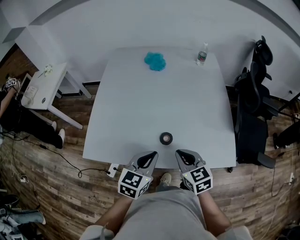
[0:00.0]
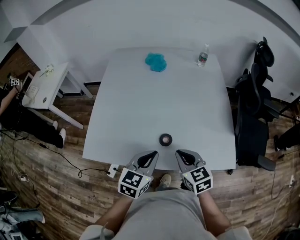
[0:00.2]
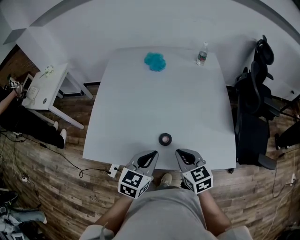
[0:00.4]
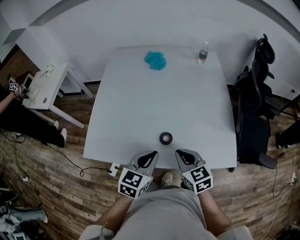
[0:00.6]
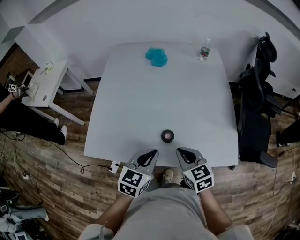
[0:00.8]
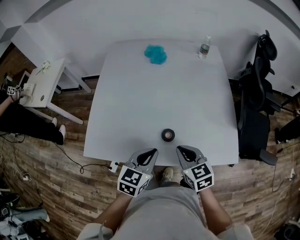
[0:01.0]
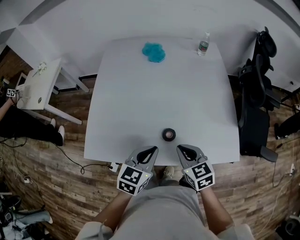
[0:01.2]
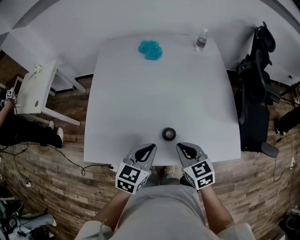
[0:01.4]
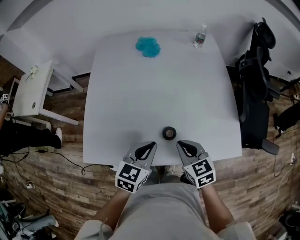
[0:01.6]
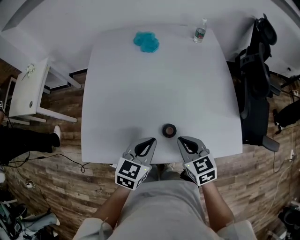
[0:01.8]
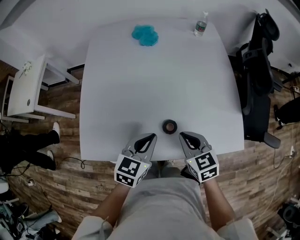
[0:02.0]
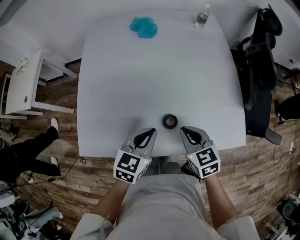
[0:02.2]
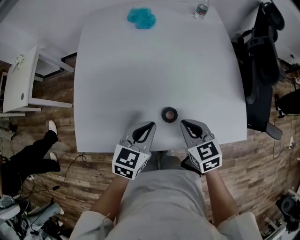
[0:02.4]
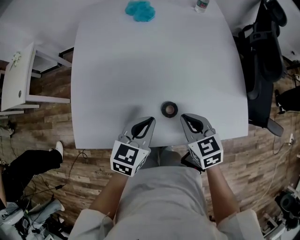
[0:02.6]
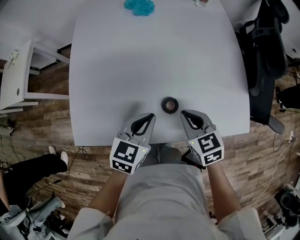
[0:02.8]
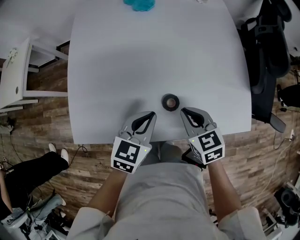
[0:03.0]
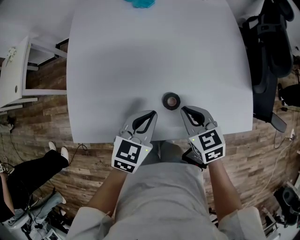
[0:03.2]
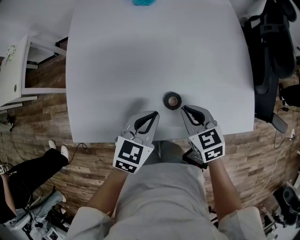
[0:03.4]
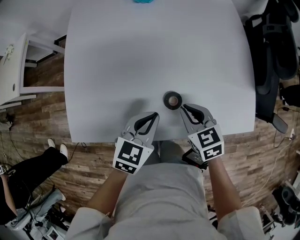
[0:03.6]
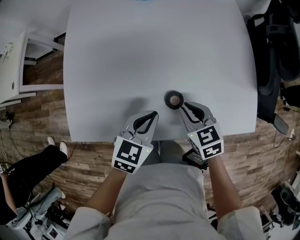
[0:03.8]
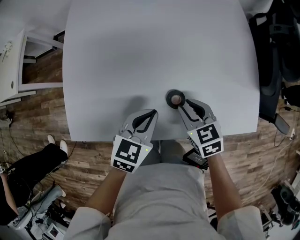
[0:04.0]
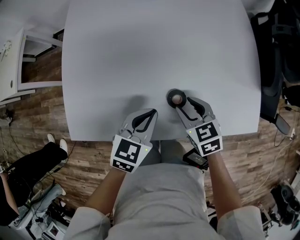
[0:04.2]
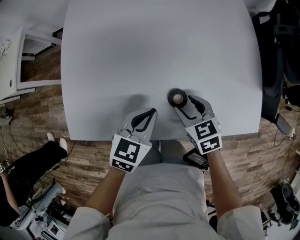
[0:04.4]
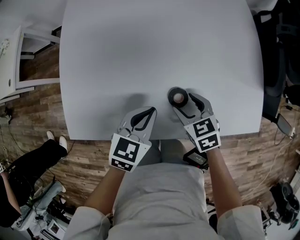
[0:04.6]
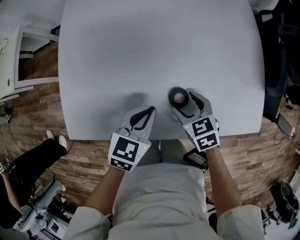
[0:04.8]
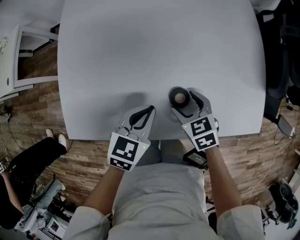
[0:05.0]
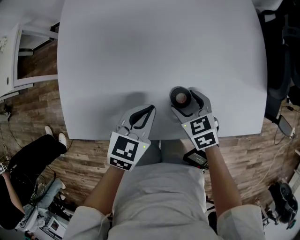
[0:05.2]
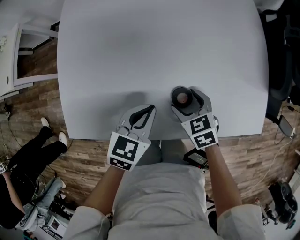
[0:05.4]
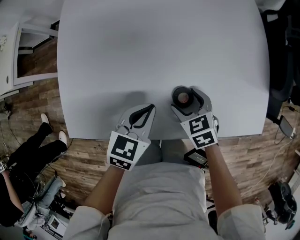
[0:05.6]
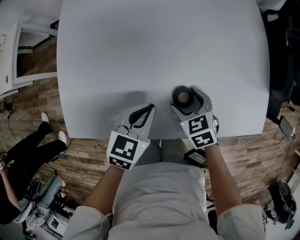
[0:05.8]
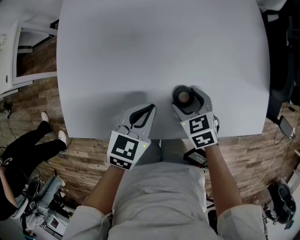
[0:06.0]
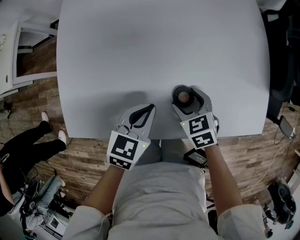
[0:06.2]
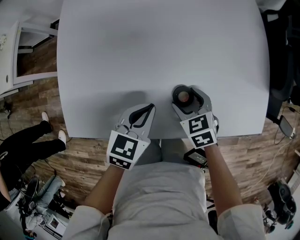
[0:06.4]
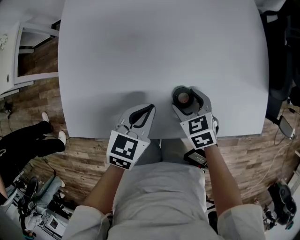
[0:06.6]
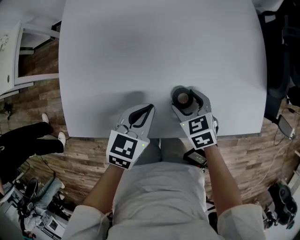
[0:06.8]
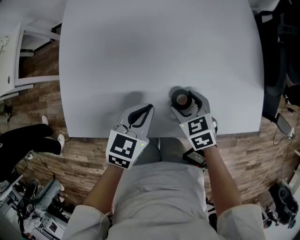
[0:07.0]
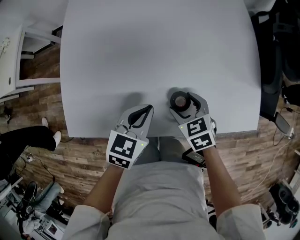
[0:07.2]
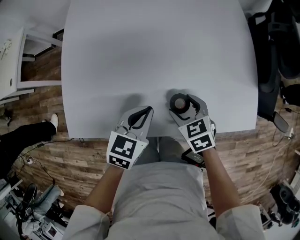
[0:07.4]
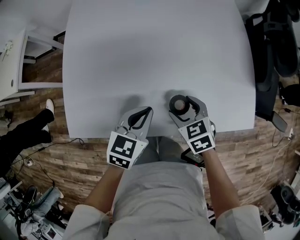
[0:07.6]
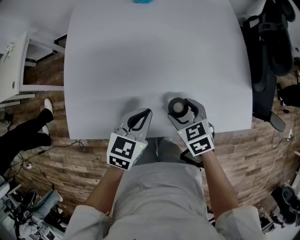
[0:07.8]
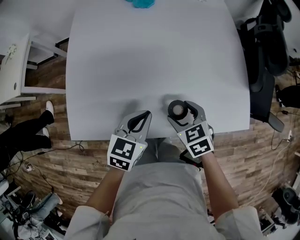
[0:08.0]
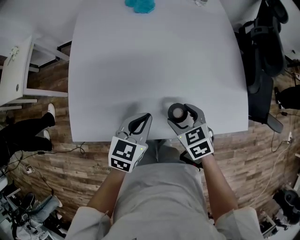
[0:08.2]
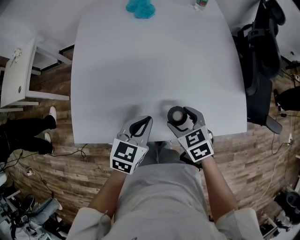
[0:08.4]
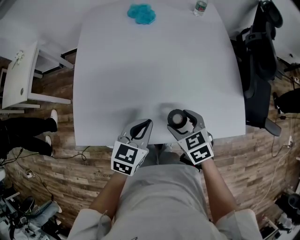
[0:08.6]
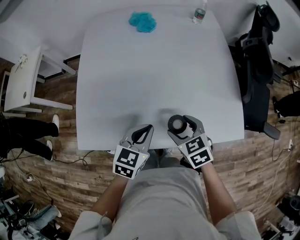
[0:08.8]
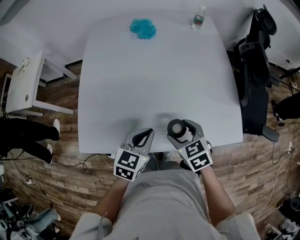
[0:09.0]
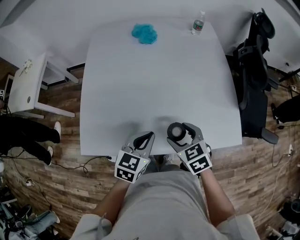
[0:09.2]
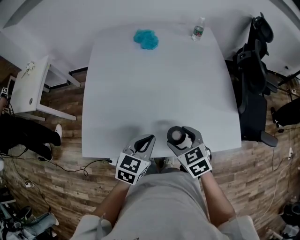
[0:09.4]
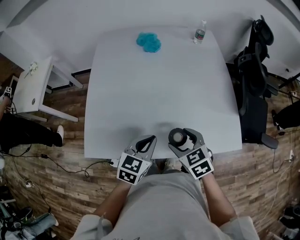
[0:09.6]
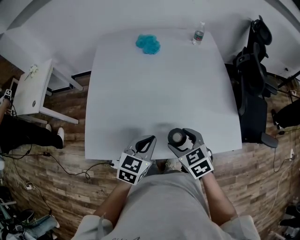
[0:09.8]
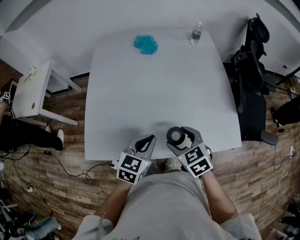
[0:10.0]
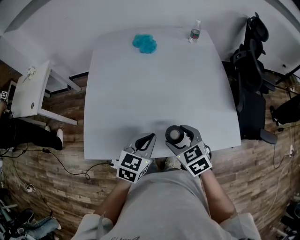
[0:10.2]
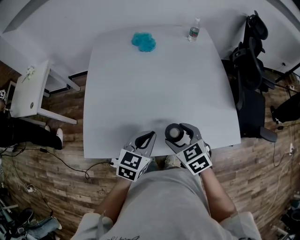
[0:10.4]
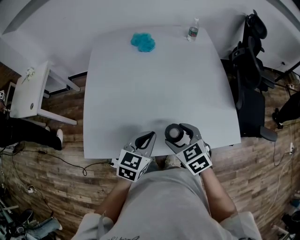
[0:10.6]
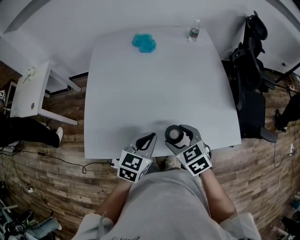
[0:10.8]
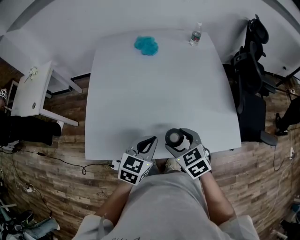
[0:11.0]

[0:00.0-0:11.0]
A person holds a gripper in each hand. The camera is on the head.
0.0 to 1.6 s: The left gripper travels forward by roughly 5 cm.
1.6 to 3.2 s: The grippers both shift downward by approximately 5 cm.
3.2 to 4.8 s: The left gripper moves downward, about 5 cm, while the right gripper travels downward by roughly 10 cm, and opens.
4.8 to 6.2 s: The grippers move only a little.
6.2 to 7.8 s: Both grippers travel together upward, about 5 cm.
7.8 to 9.4 s: The right gripper is displaced upward by some 10 cm, while the left gripper moves upward, some 5 cm.
9.4 to 11.0 s: There are only small adjustments of the grippers.

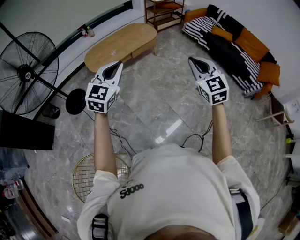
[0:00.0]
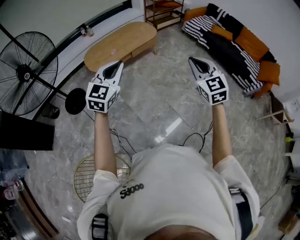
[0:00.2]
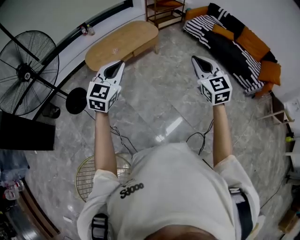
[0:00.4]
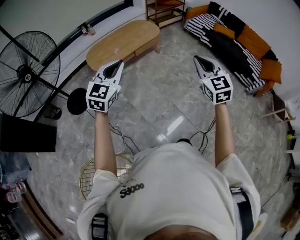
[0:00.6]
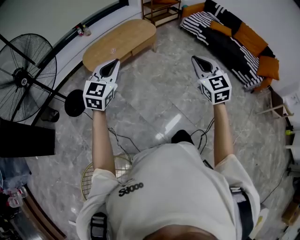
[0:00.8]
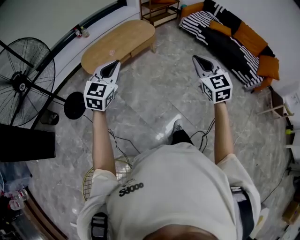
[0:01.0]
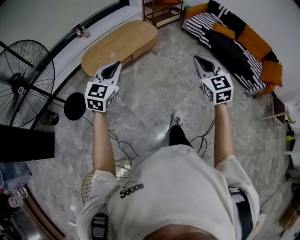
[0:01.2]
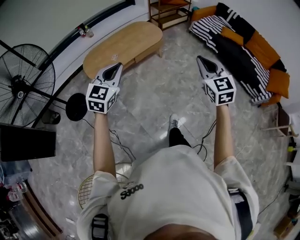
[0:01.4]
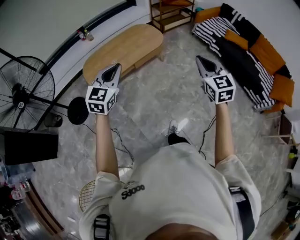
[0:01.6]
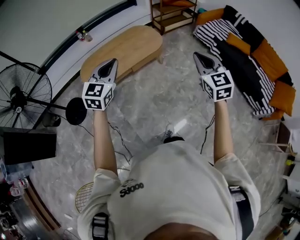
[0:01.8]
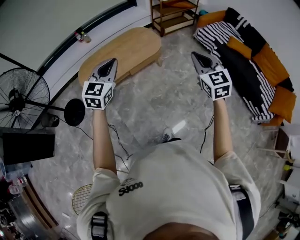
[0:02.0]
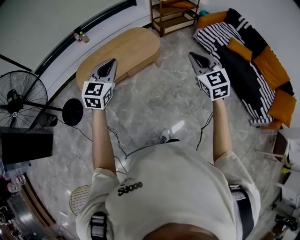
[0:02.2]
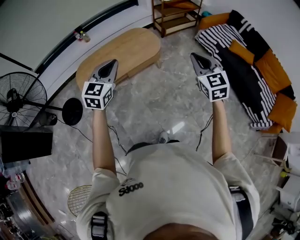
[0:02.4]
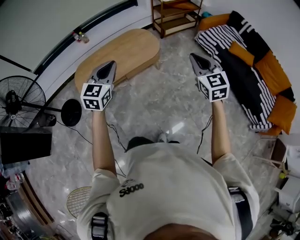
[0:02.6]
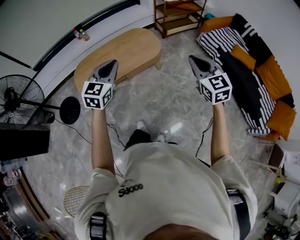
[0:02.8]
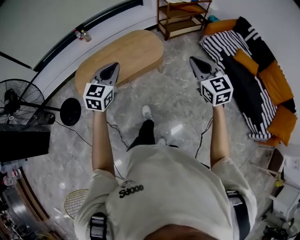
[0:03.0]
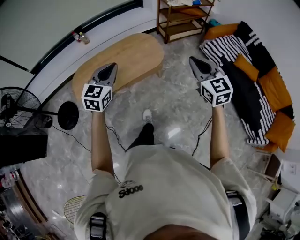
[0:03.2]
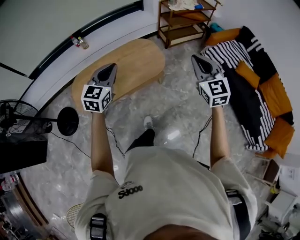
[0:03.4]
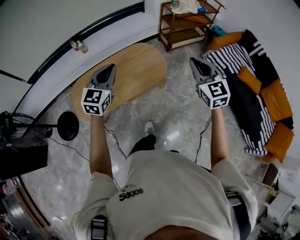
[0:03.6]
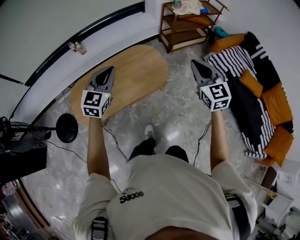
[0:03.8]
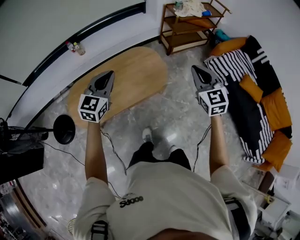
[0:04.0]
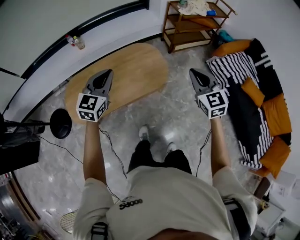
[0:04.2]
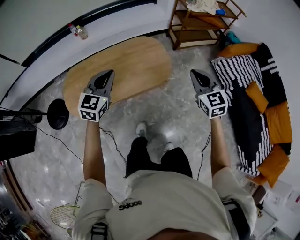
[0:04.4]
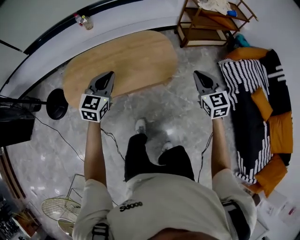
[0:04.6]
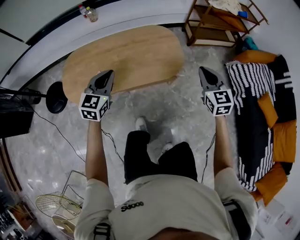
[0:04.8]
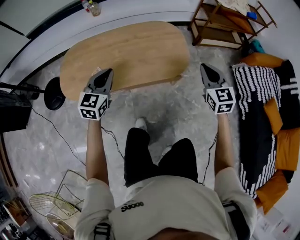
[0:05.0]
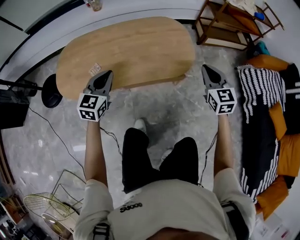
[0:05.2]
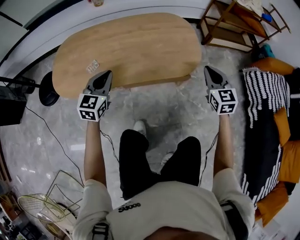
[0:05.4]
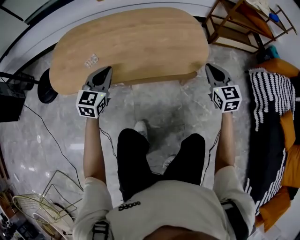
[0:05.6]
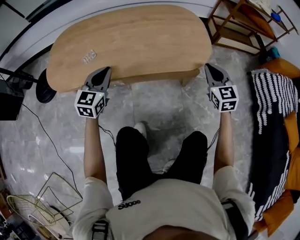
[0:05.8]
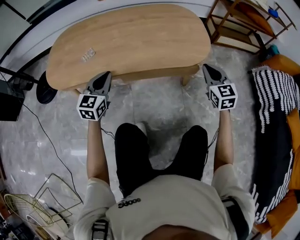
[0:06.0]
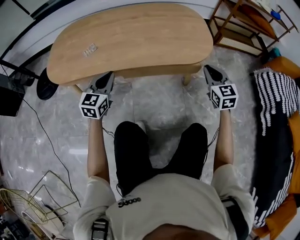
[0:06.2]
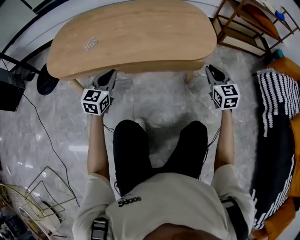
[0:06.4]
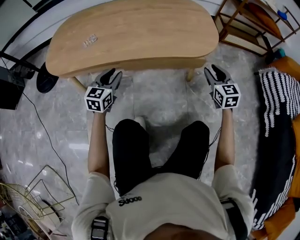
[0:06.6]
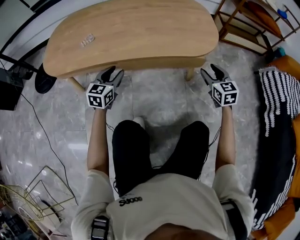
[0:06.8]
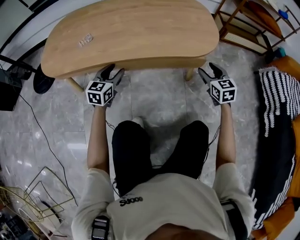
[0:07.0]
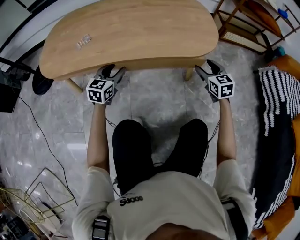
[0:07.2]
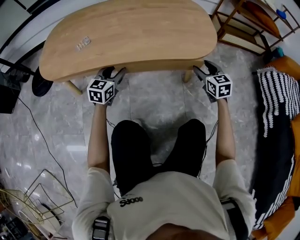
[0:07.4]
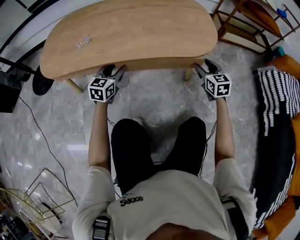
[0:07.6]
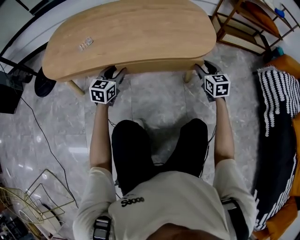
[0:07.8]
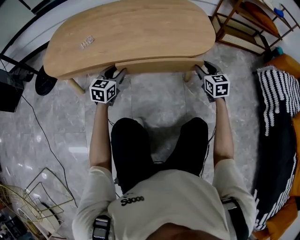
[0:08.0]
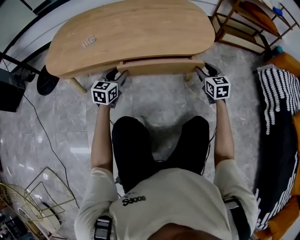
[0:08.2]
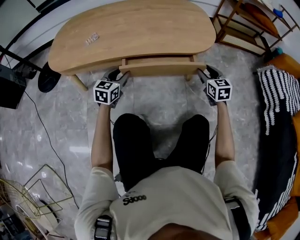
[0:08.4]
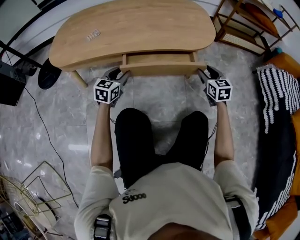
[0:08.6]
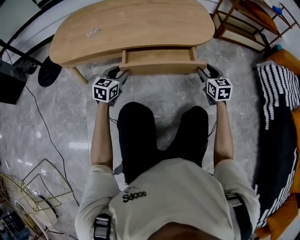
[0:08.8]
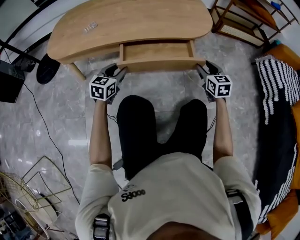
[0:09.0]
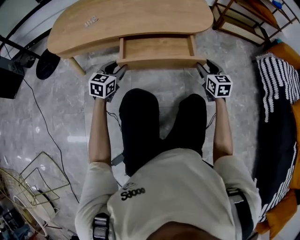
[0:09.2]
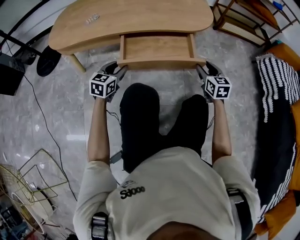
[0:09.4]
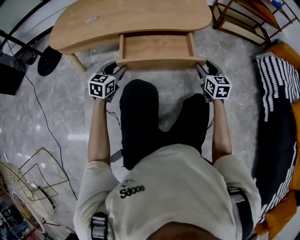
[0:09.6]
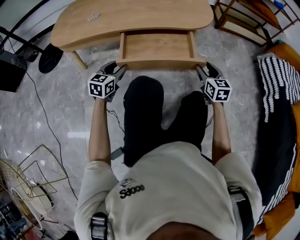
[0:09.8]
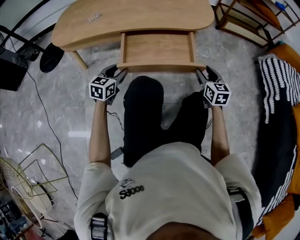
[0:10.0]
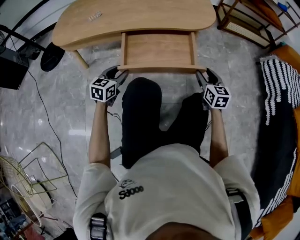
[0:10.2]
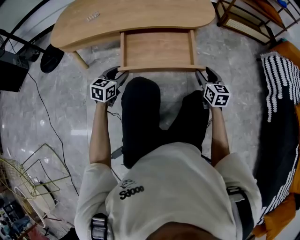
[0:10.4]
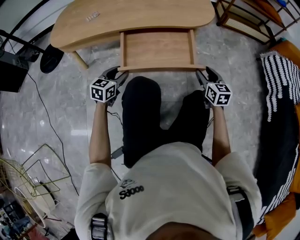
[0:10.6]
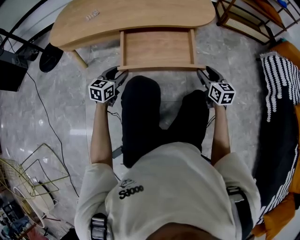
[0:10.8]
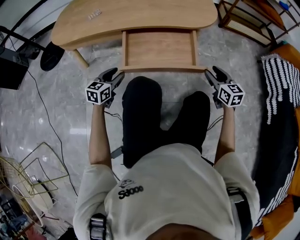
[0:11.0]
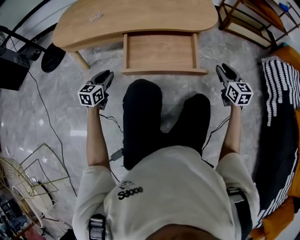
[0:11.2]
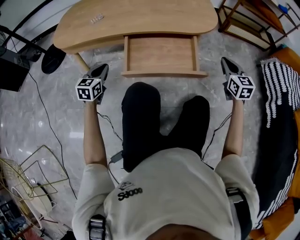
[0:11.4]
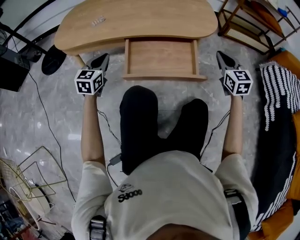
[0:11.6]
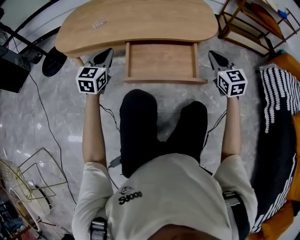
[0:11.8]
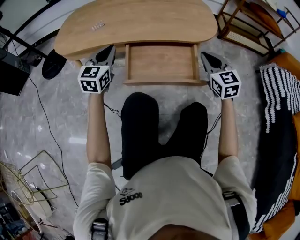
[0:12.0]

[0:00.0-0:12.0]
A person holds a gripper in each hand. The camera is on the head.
0.0 to 1.6 s: Both grippers move forward, roughly 30 cm.
1.6 to 3.0 s: Both grippers move forward, roughly 25 cm.
3.0 to 4.4 s: The two grippers go some 30 cm forward and downward.
4.4 to 6.0 s: The two grippers go about 40 cm downward. The left gripper swivels approximately 20 degrees.
6.0 to 7.6 s: Both grippers move downward, approximately 15 cm. The right gripper opens up. Meanwhile the left gripper opens its fingers.
7.6 to 9.0 s: Both grippers move backward, about 10 cm.
9.0 to 10.4 s: Both grippers move backward, approximately 5 cm.
10.4 to 12.0 s: The grippers both shift upward and forward by about 20 cm. The right gripper rotates some 20 degrees, and closes, while the left gripper swivels roughly 30 degrees, and closes up.

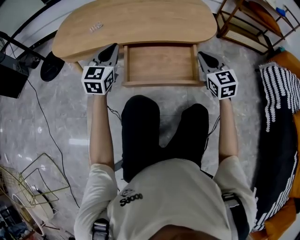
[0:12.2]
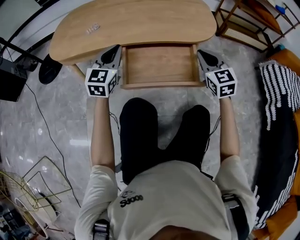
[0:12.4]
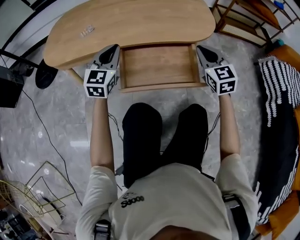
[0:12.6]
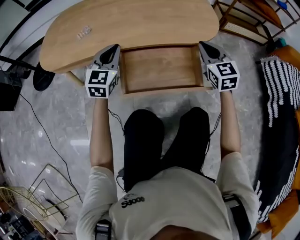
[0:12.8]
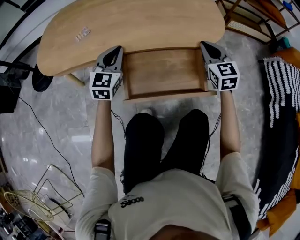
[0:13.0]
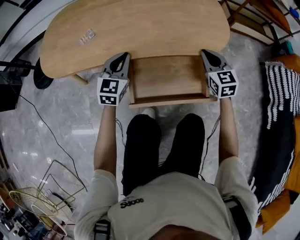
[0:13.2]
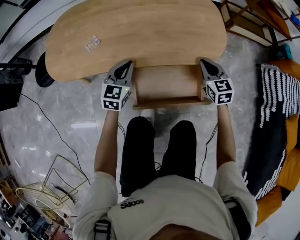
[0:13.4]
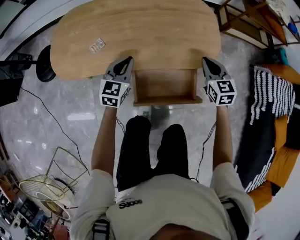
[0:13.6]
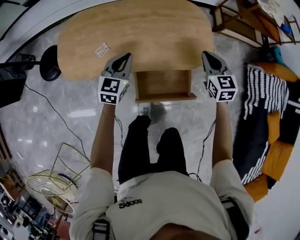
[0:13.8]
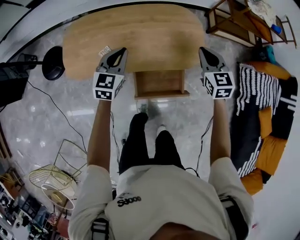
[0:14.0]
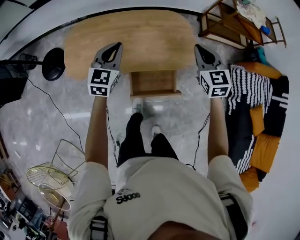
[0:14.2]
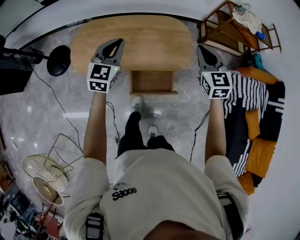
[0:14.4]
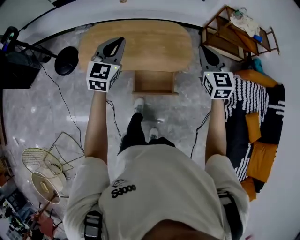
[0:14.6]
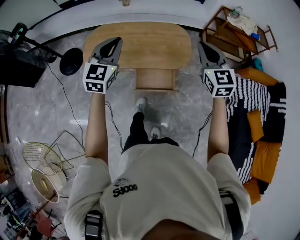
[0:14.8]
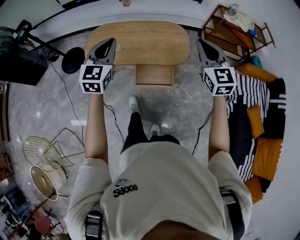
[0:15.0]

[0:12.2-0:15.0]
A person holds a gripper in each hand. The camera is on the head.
12.2 to 13.6 s: The right gripper is displaced forward and upward by about 15 cm; the left gripper goes roughly 15 cm forward.
13.6 to 15.0 s: Both grippers move upward, about 50 cm. The left gripper swivels some 20 degrees. The right gripper turns by approximately 30 degrees.
